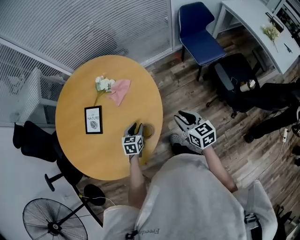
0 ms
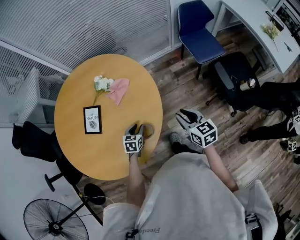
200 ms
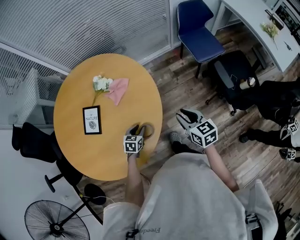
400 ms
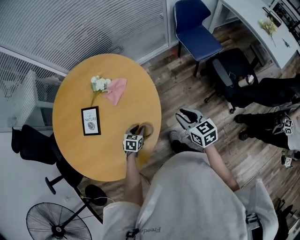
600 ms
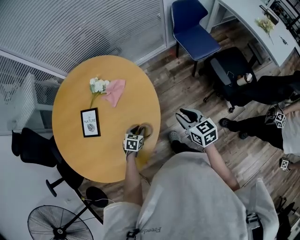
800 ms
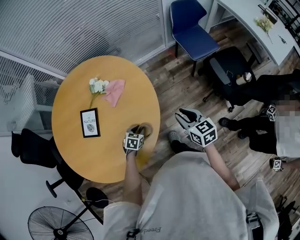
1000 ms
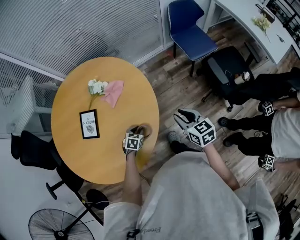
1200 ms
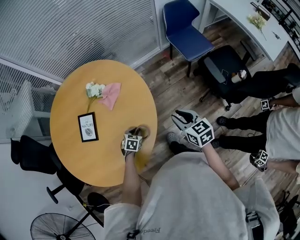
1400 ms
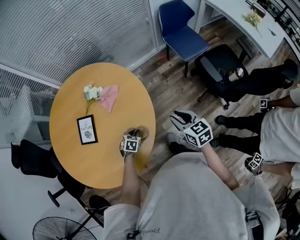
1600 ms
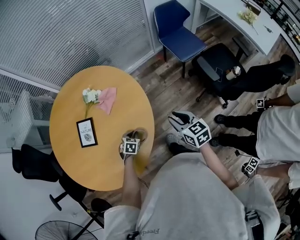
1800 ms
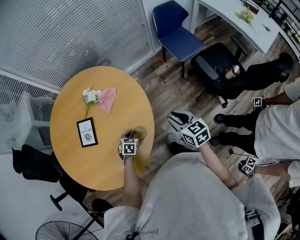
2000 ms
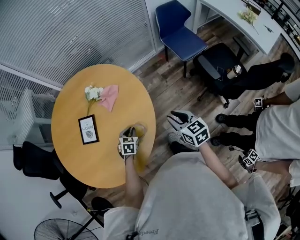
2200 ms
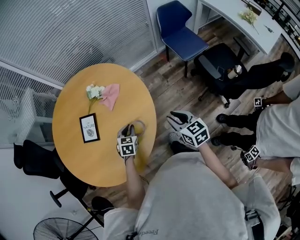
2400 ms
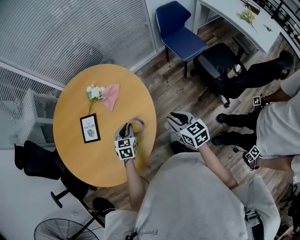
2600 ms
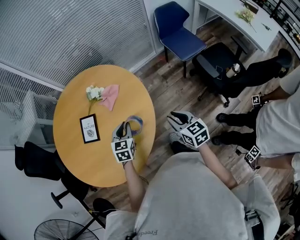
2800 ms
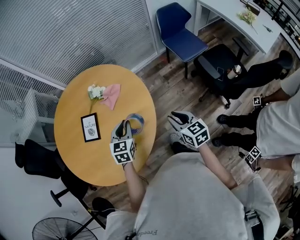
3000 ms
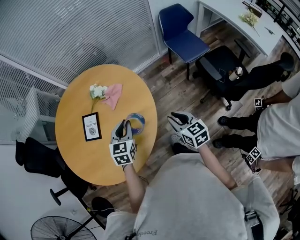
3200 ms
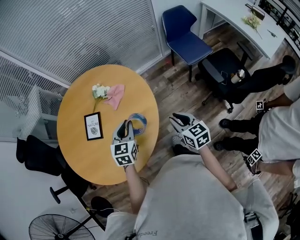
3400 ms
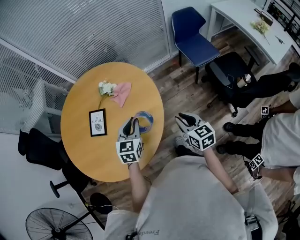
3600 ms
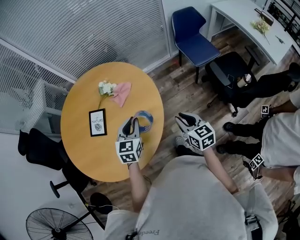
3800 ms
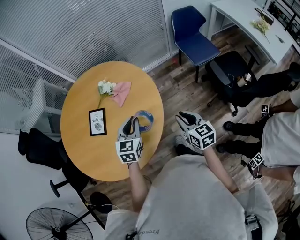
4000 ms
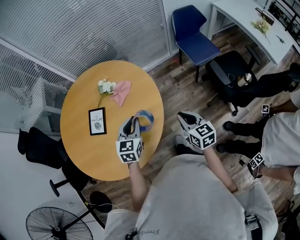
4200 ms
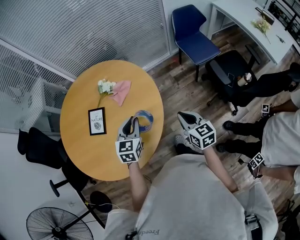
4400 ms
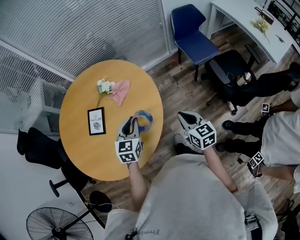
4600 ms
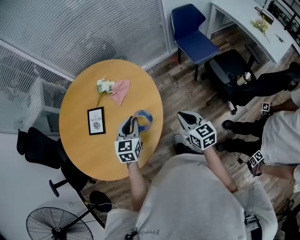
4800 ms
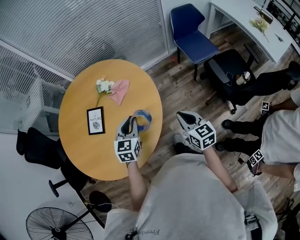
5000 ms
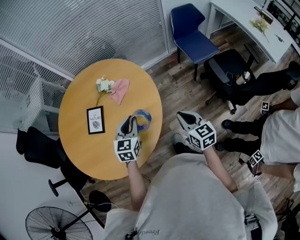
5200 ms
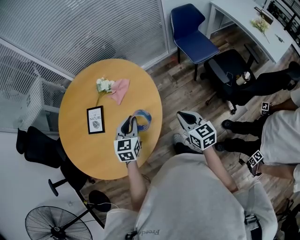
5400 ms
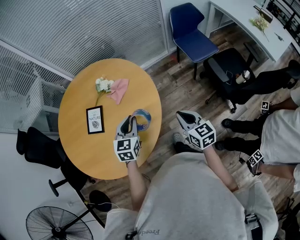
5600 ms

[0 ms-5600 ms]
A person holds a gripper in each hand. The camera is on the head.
0 ms to 1400 ms: The left gripper is displaced downward by some 10 cm, and rotates roughly 30 degrees.
1400 ms to 2800 ms: The left gripper moves upward, about 20 cm, and swivels roughly 30 degrees. Meanwhile the right gripper shifts by approximately 5 cm.
2800 ms to 4200 ms: The left gripper is displaced upward by about 5 cm.
4200 ms to 5600 ms: The grippers move only a little.

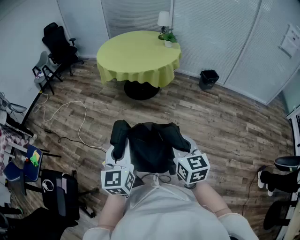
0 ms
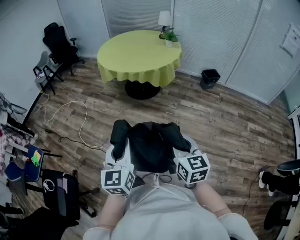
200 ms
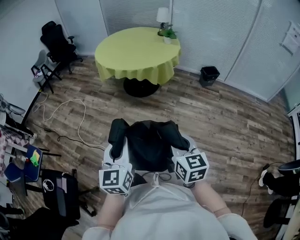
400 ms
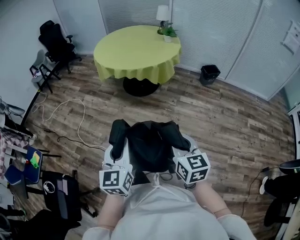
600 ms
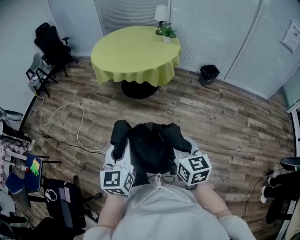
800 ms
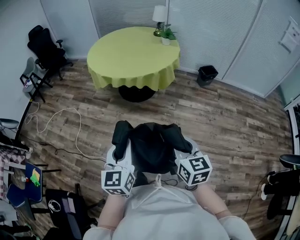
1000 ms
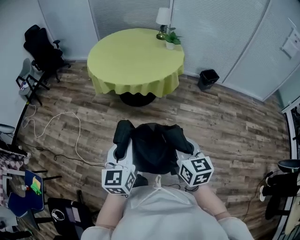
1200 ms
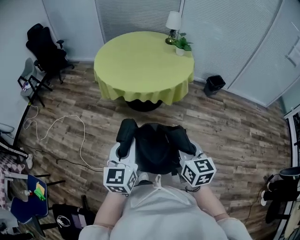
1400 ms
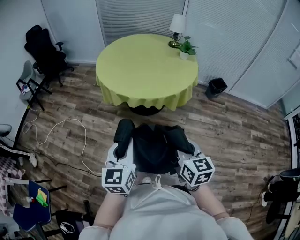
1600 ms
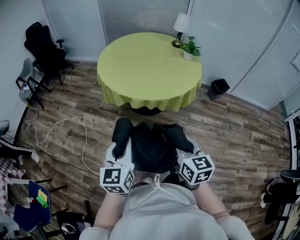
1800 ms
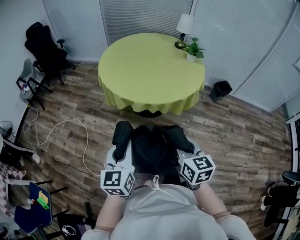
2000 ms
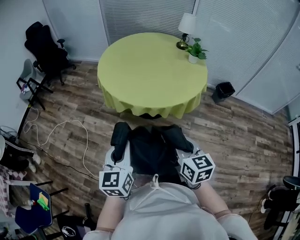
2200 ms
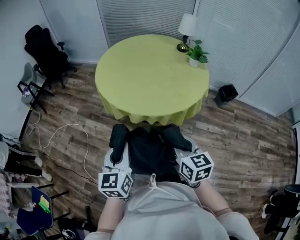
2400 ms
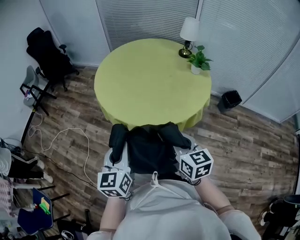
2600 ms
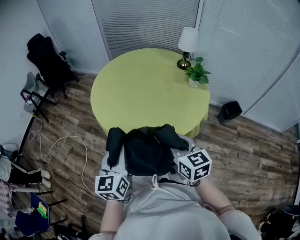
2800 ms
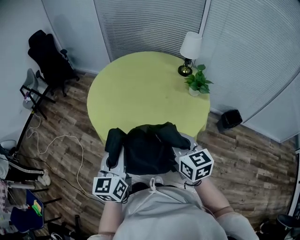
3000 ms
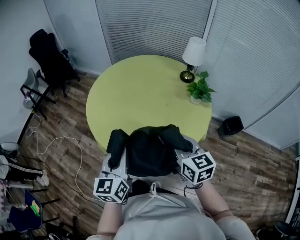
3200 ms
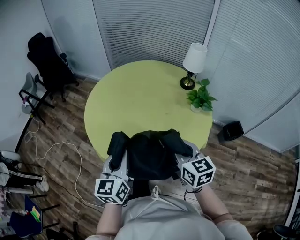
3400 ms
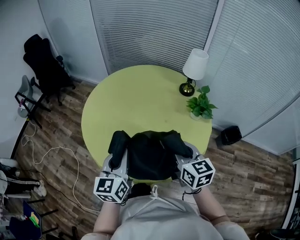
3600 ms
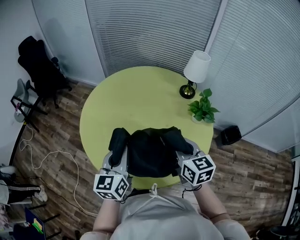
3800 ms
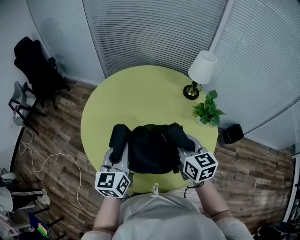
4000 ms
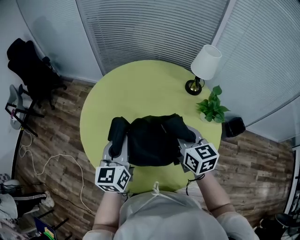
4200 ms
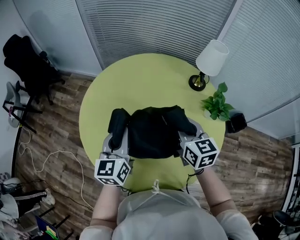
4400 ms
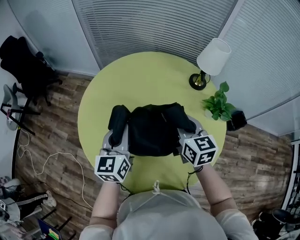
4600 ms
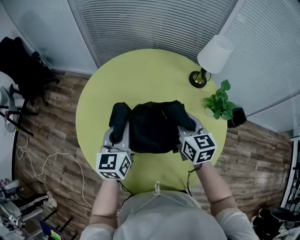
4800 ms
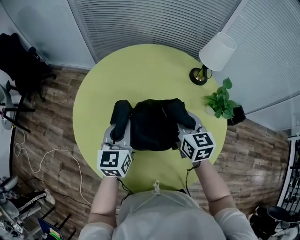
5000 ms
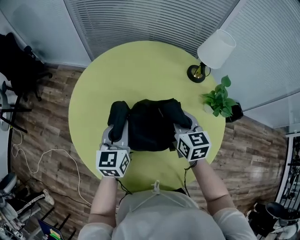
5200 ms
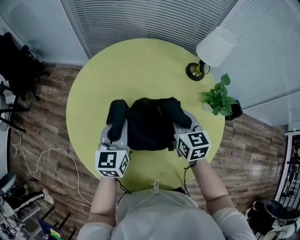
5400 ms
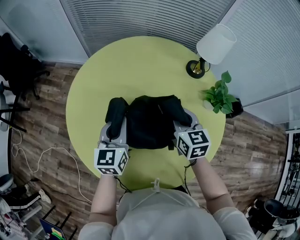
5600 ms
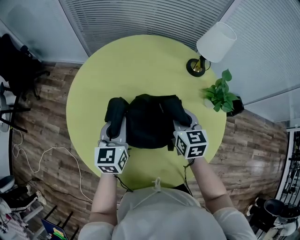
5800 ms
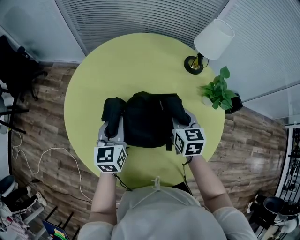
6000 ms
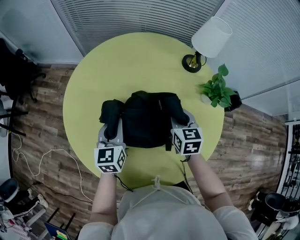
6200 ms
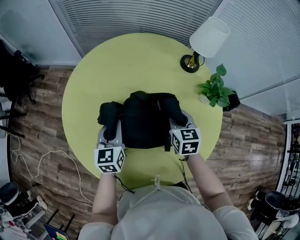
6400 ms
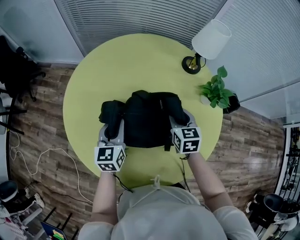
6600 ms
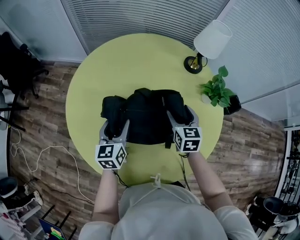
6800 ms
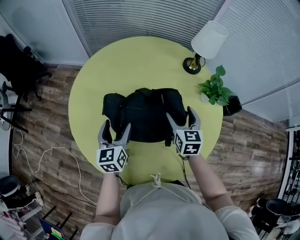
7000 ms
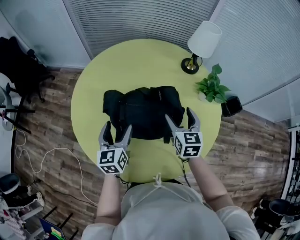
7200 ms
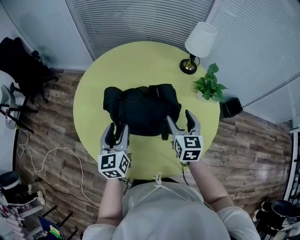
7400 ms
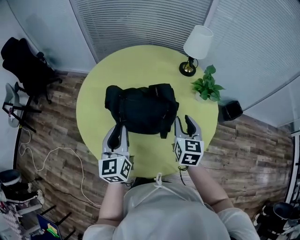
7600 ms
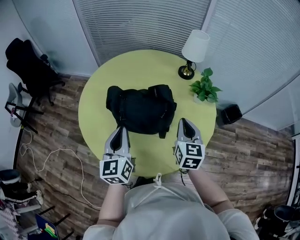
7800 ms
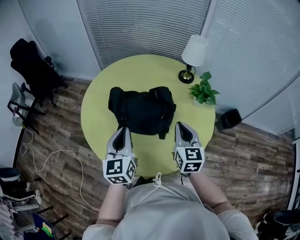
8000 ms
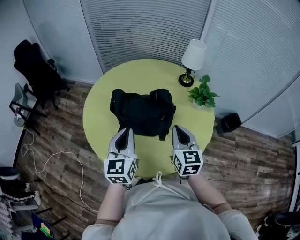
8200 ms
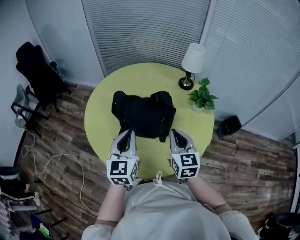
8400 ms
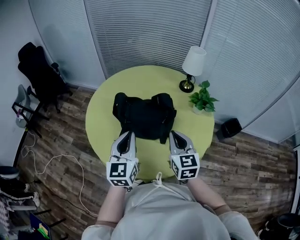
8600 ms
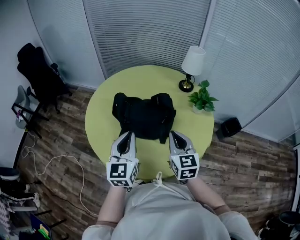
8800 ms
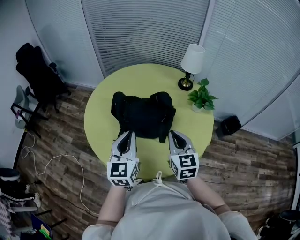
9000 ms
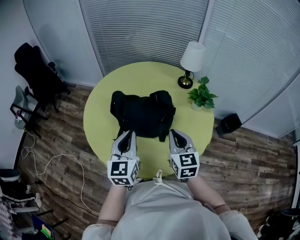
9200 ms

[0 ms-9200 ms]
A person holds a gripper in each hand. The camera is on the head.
0 ms to 1600 ms: Both grippers are carried forward and to the left, about 40 cm.
1600 ms to 3000 ms: The left gripper moves forward and to the right, roughly 40 cm, while the right gripper goes approximately 40 cm forward.
3000 ms to 4600 ms: The grippers both shift forward by approximately 40 cm.
4600 ms to 6200 ms: Both grippers move downward, roughly 10 cm.
6200 ms to 7600 ms: The grippers both shift backward and upward by approximately 20 cm. The left gripper opens, then closes again. Meanwhile the right gripper opens and closes again.
7600 ms to 9200 ms: The left gripper shifts some 10 cm backward and to the right. Meanwhile the right gripper moves backward and upward, roughly 10 cm, and closes up.

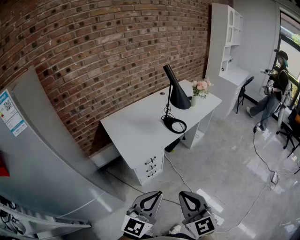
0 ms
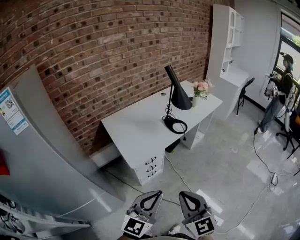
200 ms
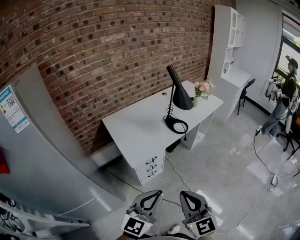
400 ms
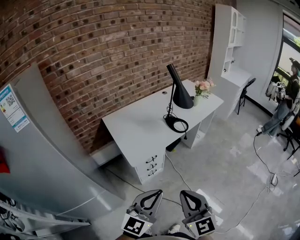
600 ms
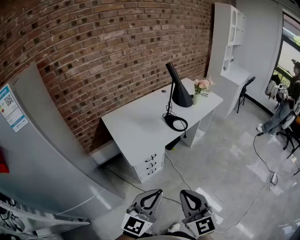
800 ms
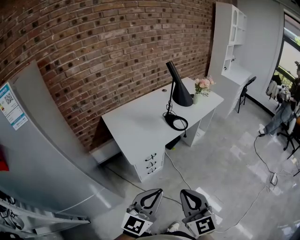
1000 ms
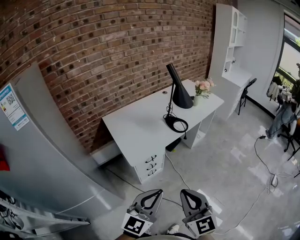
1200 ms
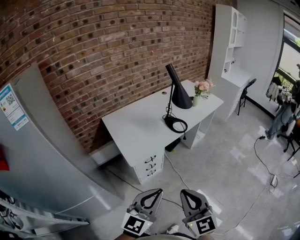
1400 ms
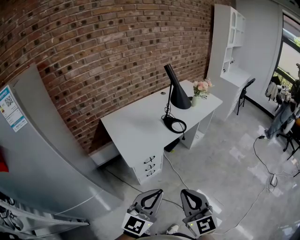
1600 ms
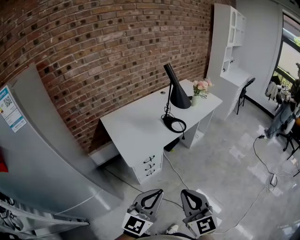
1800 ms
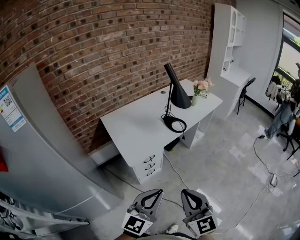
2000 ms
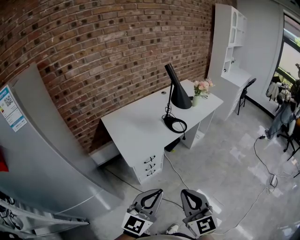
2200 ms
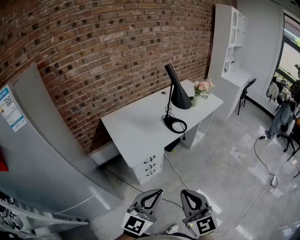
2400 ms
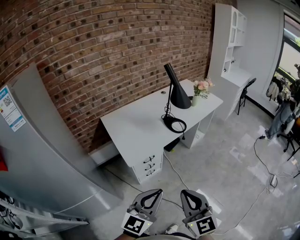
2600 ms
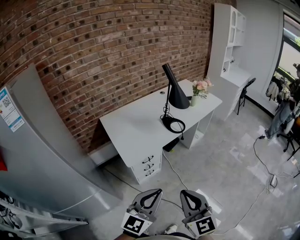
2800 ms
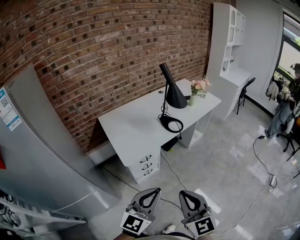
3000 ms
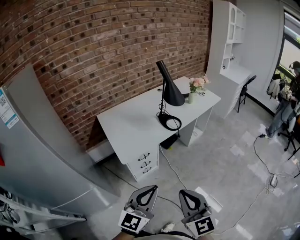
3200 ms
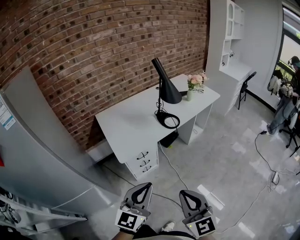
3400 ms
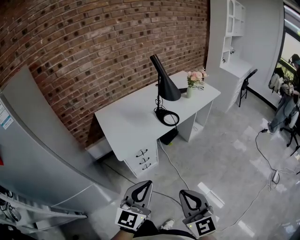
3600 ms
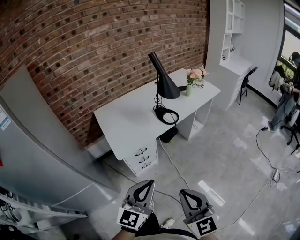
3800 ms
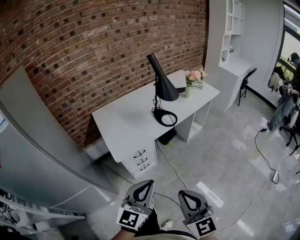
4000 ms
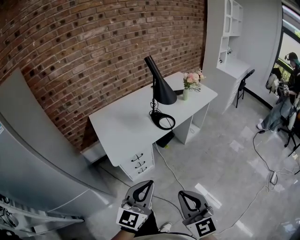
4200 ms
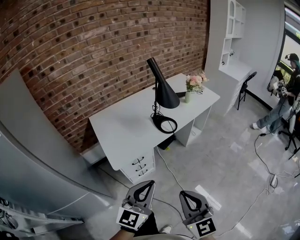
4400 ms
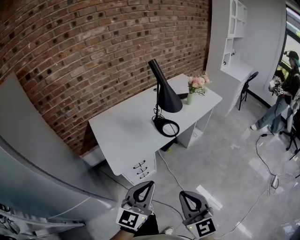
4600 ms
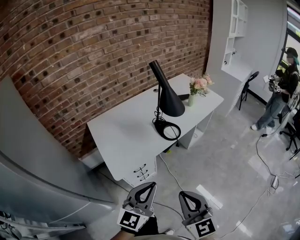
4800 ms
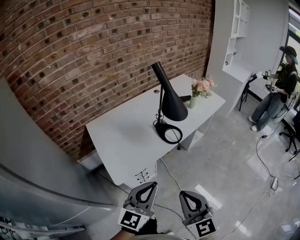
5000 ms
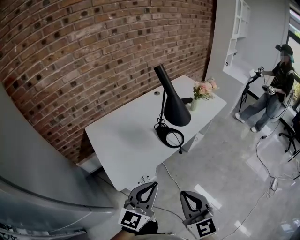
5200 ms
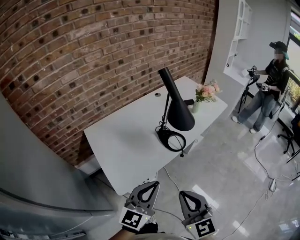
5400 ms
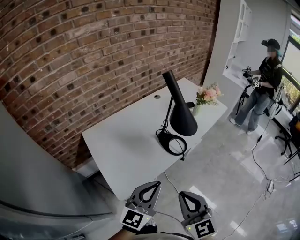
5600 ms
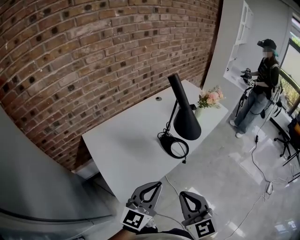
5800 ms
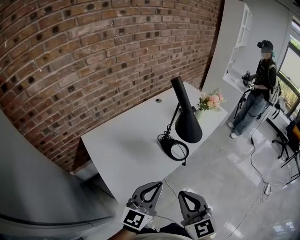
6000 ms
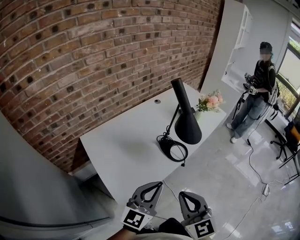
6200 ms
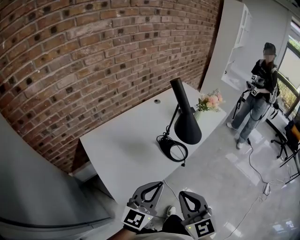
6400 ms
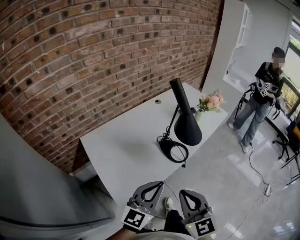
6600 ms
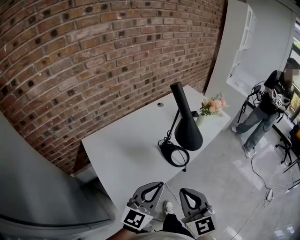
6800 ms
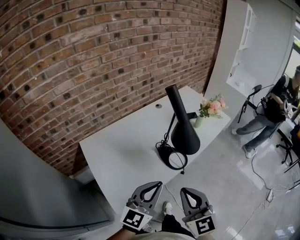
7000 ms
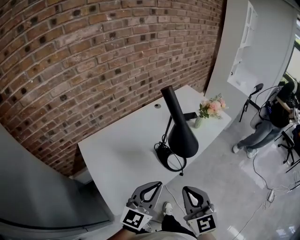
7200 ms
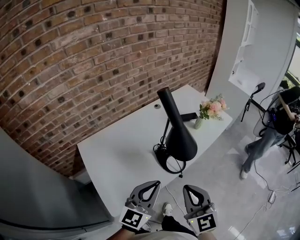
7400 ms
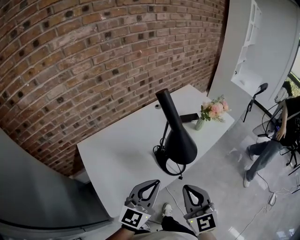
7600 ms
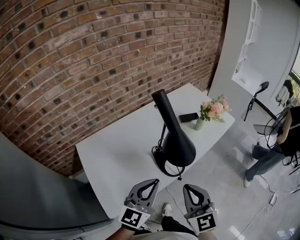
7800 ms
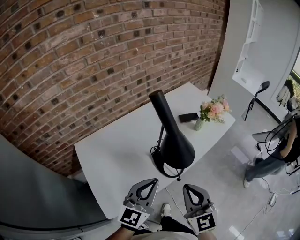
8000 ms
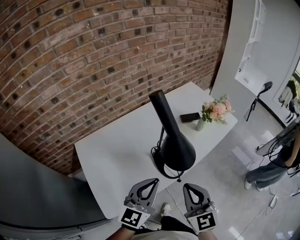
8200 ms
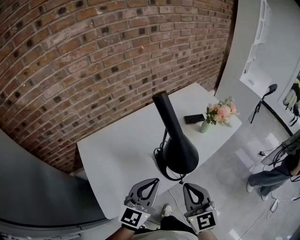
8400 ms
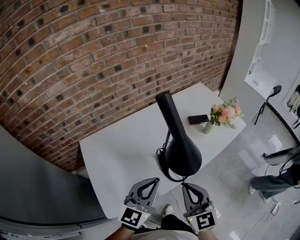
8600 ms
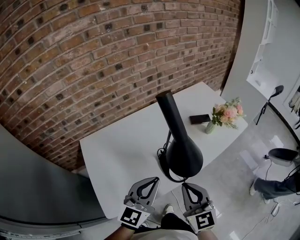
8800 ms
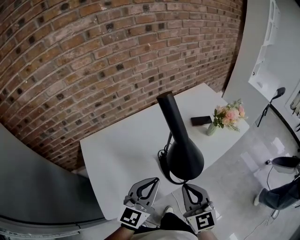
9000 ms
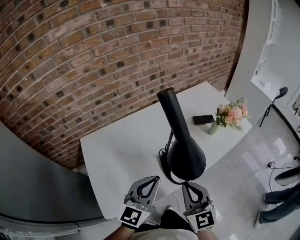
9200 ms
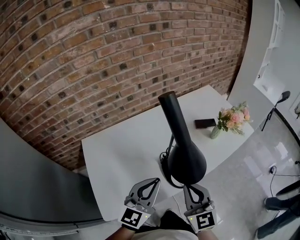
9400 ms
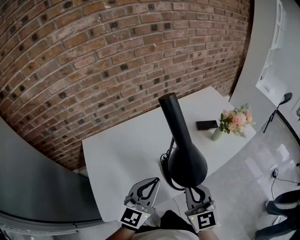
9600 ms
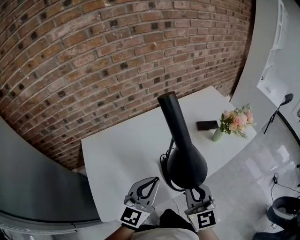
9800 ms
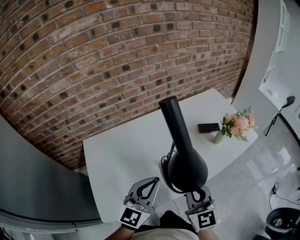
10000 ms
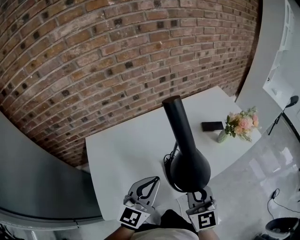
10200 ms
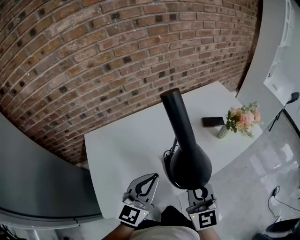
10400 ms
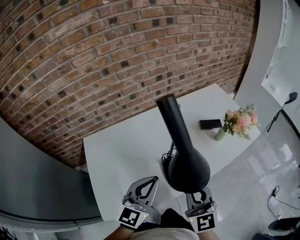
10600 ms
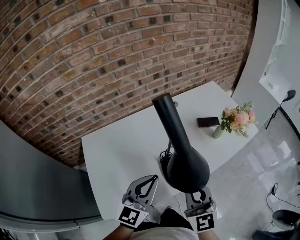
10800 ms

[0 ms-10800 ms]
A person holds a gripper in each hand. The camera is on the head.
0 ms to 1600 ms: Both grippers stay put.
1600 ms to 3000 ms: The grippers stay close to where they were, moving slightly.
3000 ms to 4600 ms: The right gripper is displaced forward and to the right by about 10 cm. Meanwhile the left gripper shifts about 15 cm forward.
4600 ms to 6200 ms: Both grippers travel together forward and to the left, about 20 cm.
6200 ms to 7800 ms: The grippers both shift forward and to the right by about 15 cm.
7800 ms to 9200 ms: The left gripper heads forward, covering roughly 5 cm. The right gripper shifts approximately 10 cm forward and downward.
9200 ms to 10800 ms: The grippers make only small movements.
